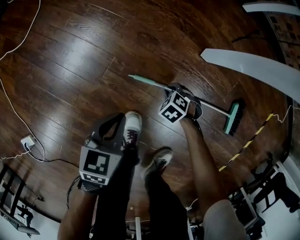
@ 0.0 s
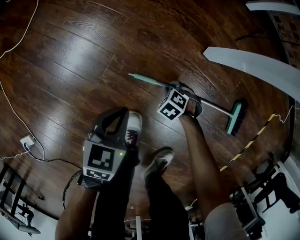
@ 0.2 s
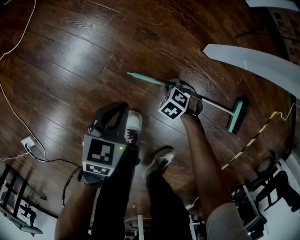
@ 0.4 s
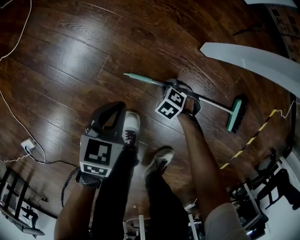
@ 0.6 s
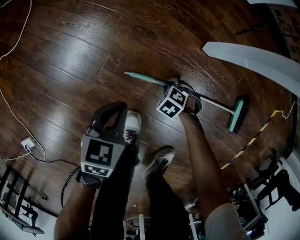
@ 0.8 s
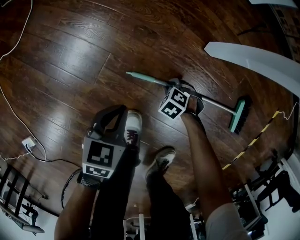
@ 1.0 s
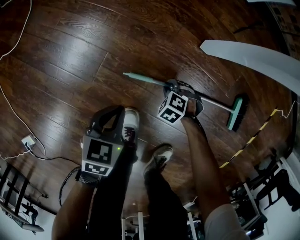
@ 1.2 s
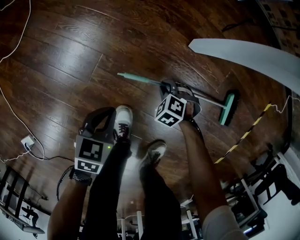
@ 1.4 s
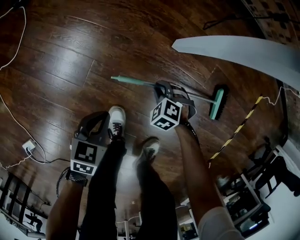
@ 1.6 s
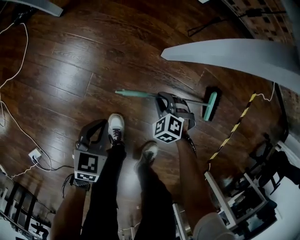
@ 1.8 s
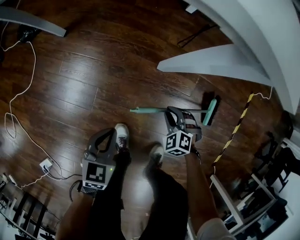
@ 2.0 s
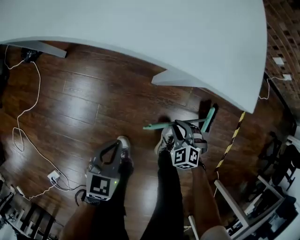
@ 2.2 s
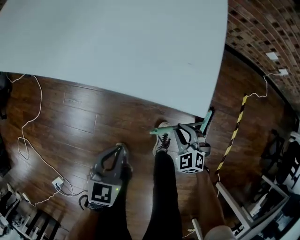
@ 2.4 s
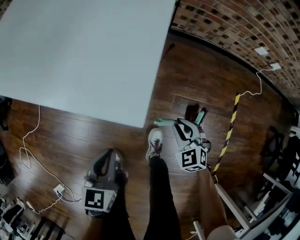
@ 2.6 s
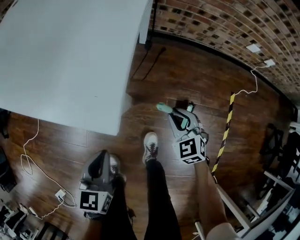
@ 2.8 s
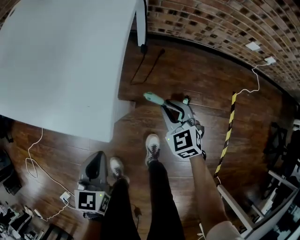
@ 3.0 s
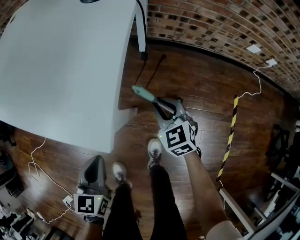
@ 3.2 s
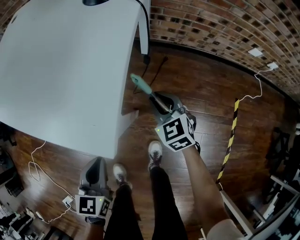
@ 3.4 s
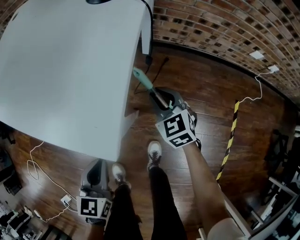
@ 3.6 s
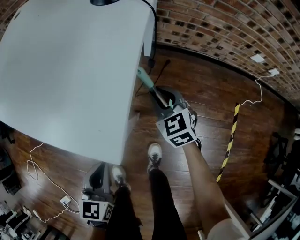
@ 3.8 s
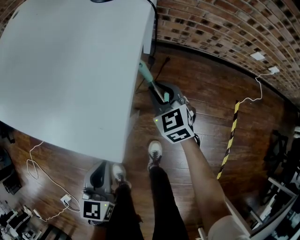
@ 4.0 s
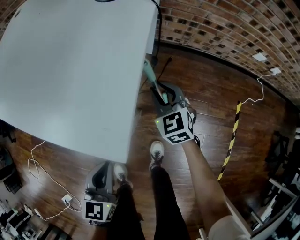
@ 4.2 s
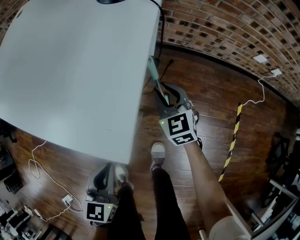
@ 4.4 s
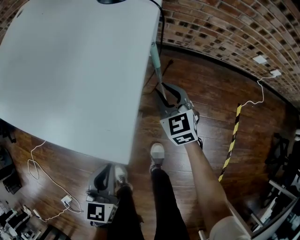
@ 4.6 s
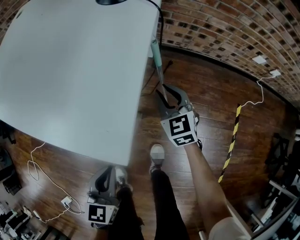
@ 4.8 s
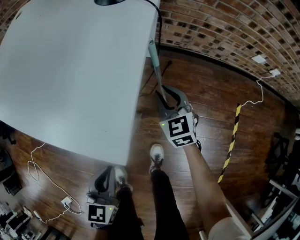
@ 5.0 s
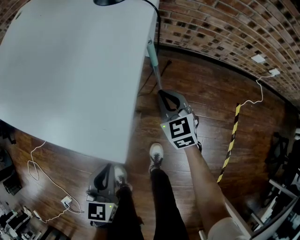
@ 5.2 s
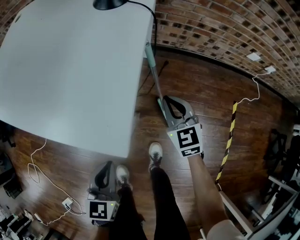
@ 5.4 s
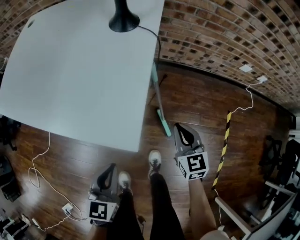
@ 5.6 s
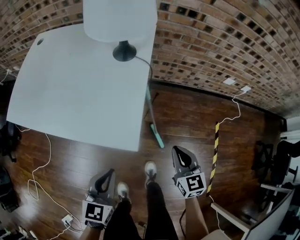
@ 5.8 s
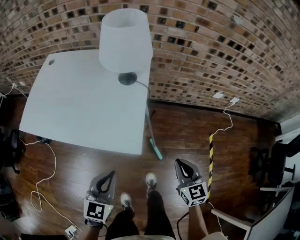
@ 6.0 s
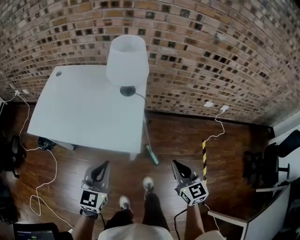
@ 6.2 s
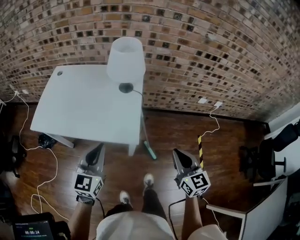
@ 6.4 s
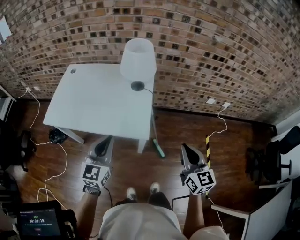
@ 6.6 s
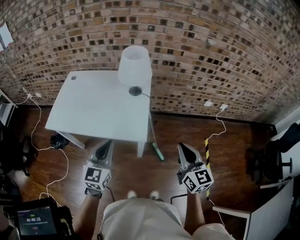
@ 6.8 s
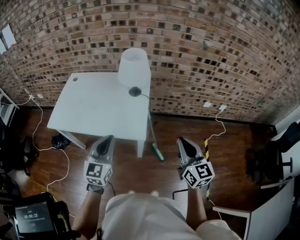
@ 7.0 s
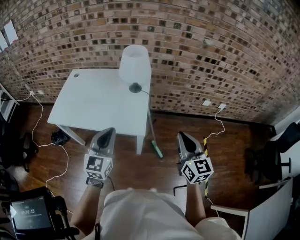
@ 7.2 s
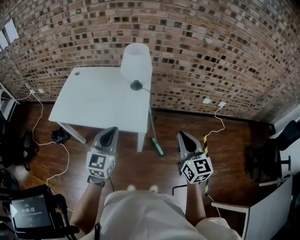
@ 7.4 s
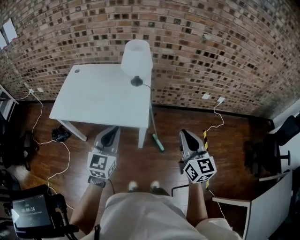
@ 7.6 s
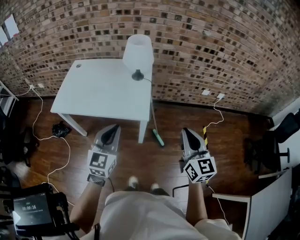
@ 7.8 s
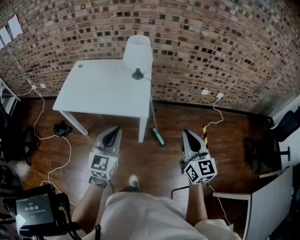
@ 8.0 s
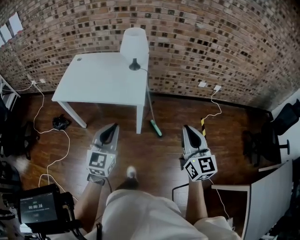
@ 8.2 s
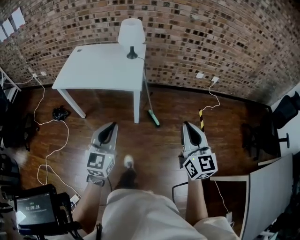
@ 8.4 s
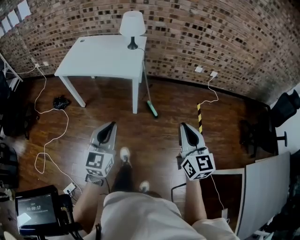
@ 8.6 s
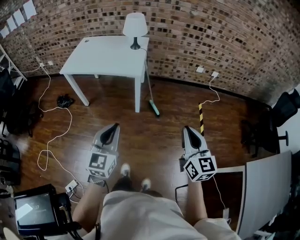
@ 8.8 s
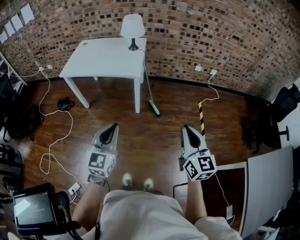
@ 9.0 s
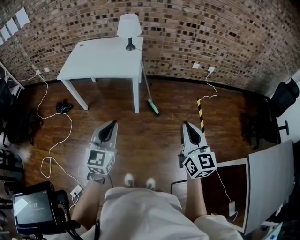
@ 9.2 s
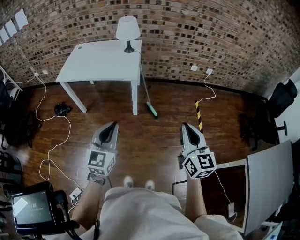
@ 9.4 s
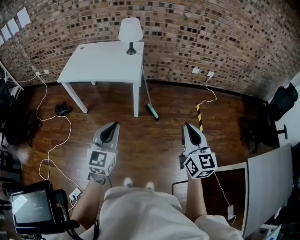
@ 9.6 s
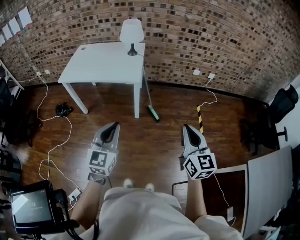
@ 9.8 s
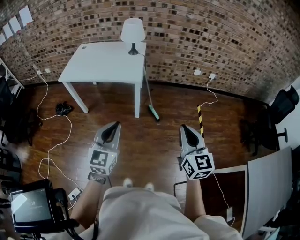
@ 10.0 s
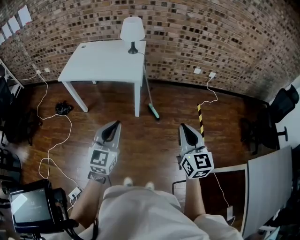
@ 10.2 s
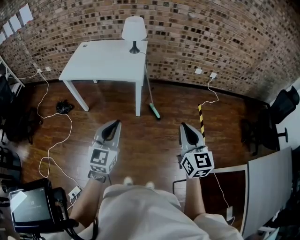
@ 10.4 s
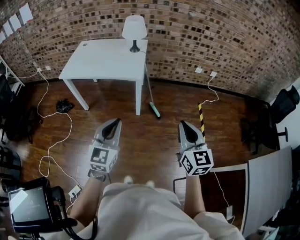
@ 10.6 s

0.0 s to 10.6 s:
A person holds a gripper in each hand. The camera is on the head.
0.0 to 1.6 s: The right gripper moves upward, roughly 10 cm.
1.6 to 3.0 s: The grippers both shift upward by roughly 35 cm. The left gripper changes its angle by approximately 20 degrees; the right gripper points its fingers about 40 degrees further upward.
3.0 to 4.6 s: The right gripper moves forward, about 10 cm.
4.6 to 6.0 s: The right gripper is displaced upward and backward by some 35 cm, swivels about 20 degrees, and closes. Meanwhile the left gripper shifts approximately 25 cm upward.
6.0 to 7.6 s: Both grippers travel together upward, roughly 25 cm. The right gripper swivels some 20 degrees.
7.6 to 9.0 s: The grippers both shift backward by approximately 40 cm.
9.0 to 10.6 s: The right gripper ends up roughly 5 cm from where it was.

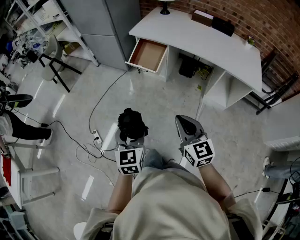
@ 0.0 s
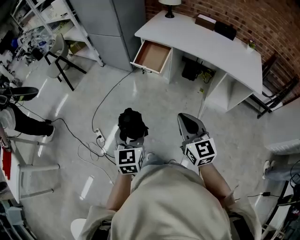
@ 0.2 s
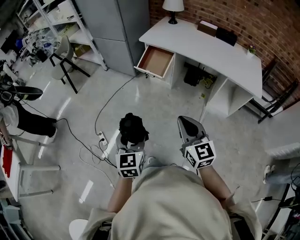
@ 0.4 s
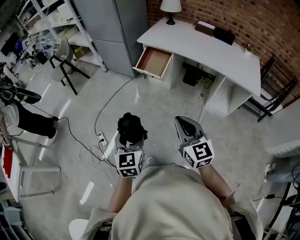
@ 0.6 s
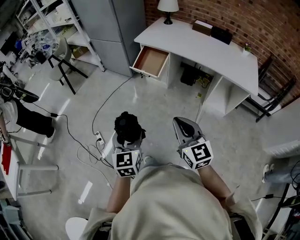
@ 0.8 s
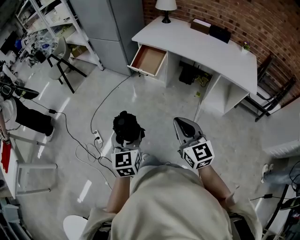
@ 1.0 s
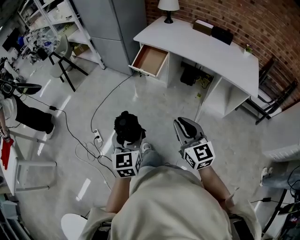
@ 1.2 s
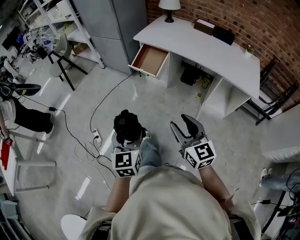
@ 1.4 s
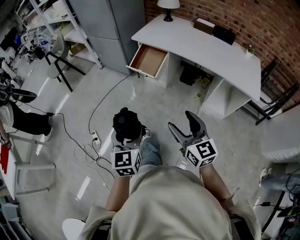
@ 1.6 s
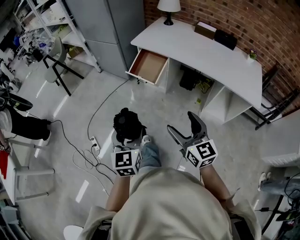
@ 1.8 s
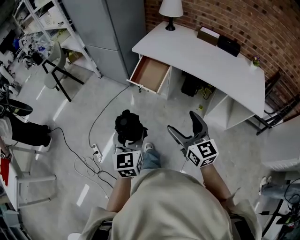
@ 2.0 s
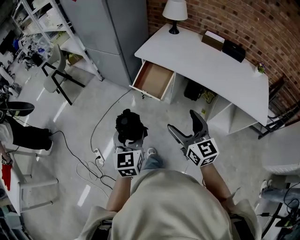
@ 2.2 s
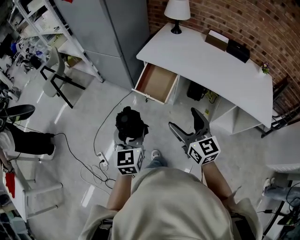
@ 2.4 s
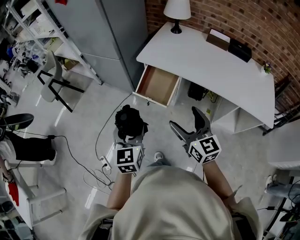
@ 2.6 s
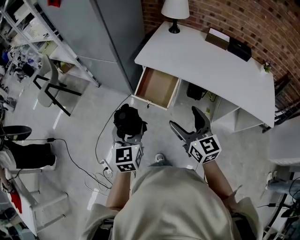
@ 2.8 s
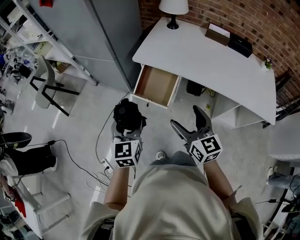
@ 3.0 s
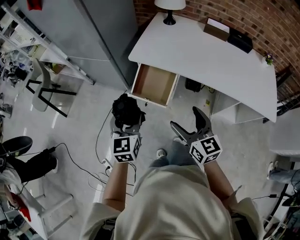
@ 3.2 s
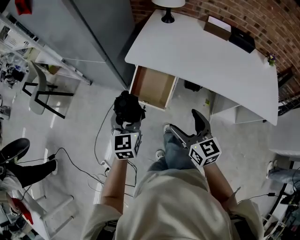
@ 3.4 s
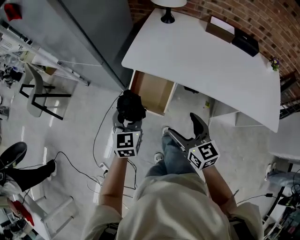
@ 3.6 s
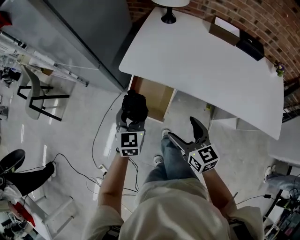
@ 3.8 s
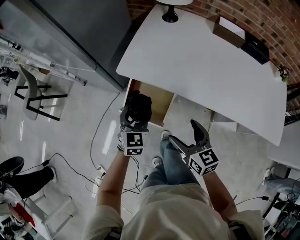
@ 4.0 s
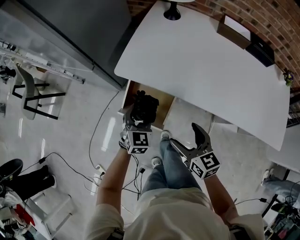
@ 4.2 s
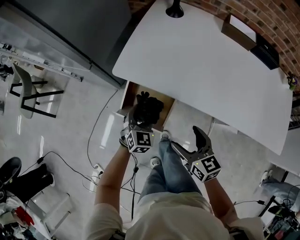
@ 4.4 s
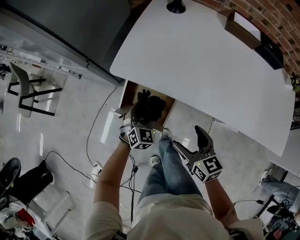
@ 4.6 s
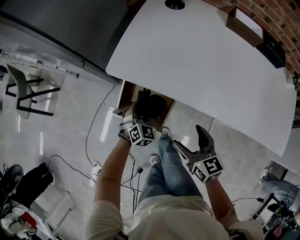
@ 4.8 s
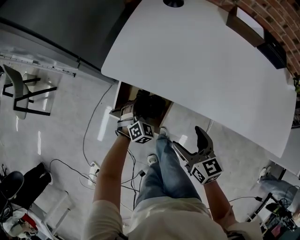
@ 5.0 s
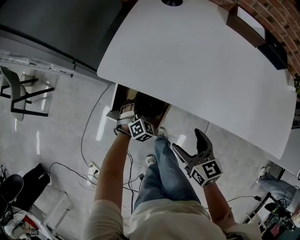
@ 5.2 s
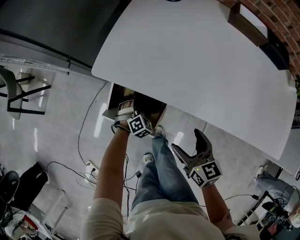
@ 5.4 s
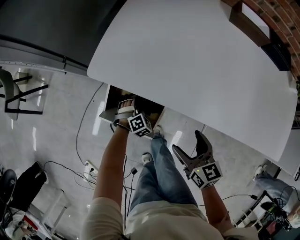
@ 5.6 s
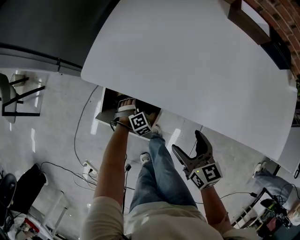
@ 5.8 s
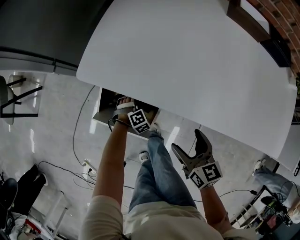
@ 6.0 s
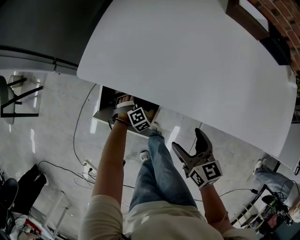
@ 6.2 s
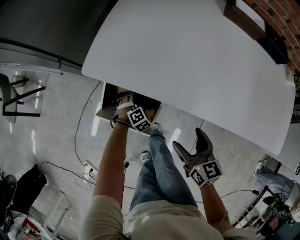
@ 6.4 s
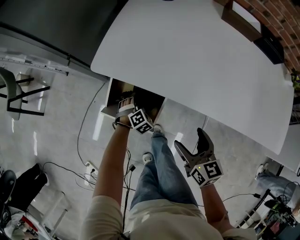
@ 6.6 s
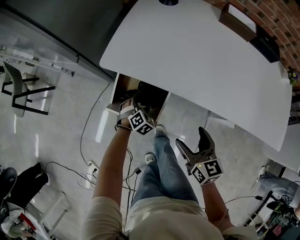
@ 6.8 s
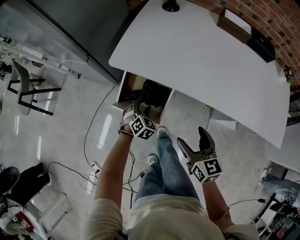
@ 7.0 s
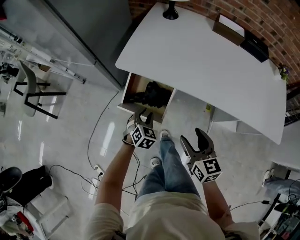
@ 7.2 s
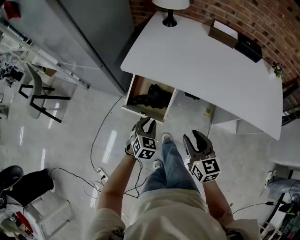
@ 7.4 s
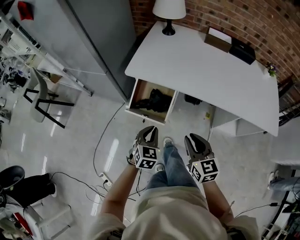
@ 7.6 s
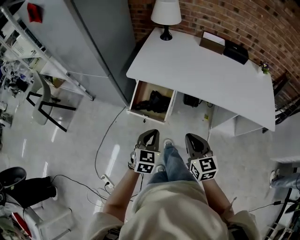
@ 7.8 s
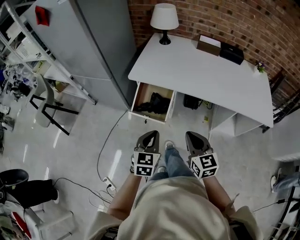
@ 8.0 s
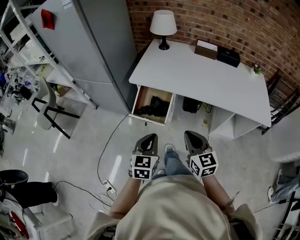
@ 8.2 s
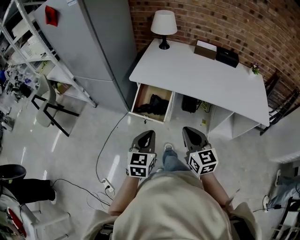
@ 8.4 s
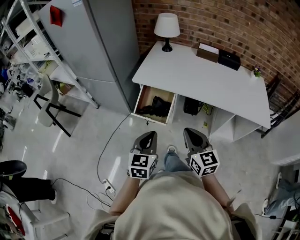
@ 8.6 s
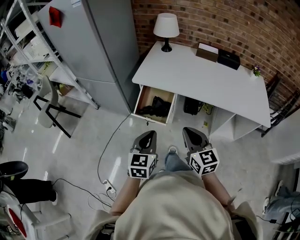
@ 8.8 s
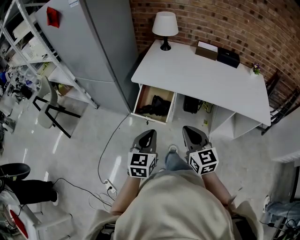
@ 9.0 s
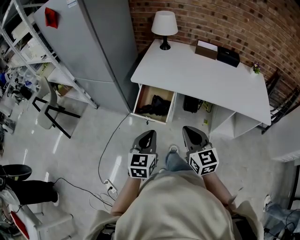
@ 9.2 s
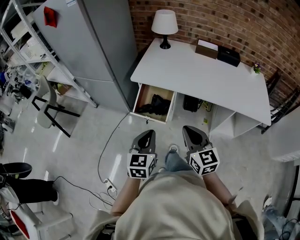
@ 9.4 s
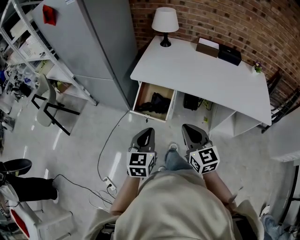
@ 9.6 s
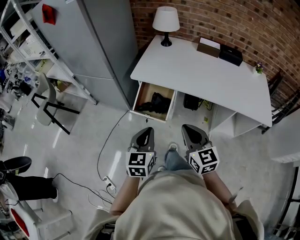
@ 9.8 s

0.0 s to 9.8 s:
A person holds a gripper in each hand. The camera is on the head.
0.0 to 1.4 s: The grippers both shift backward by some 5 cm. The right gripper opens.
1.4 to 2.8 s: The grippers both shift forward by roughly 40 cm. The right gripper opens.
2.8 to 4.2 s: The right gripper goes approximately 25 cm forward and downward, and swivels roughly 20 degrees; the left gripper moves forward, downward and to the right, approximately 35 cm, and turns by some 30 degrees.
4.2 to 5.6 s: The left gripper is displaced downward by roughly 25 cm, and tilts its fingers some 30 degrees downward, while the right gripper shifts roughly 10 cm downward and to the right.
5.6 to 7.0 s: The left gripper moves upward and backward, approximately 15 cm, and turns by some 20 degrees, while the right gripper goes about 10 cm backward and upward.
7.0 to 8.4 s: The left gripper moves upward and backward, approximately 40 cm, tips its fingers upward by about 30 degrees, and closes. The right gripper is displaced backward and upward by approximately 25 cm, and closes.
8.4 to 9.8 s: The grippers make only small movements.

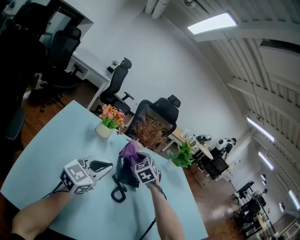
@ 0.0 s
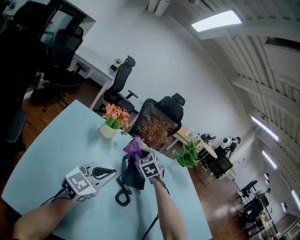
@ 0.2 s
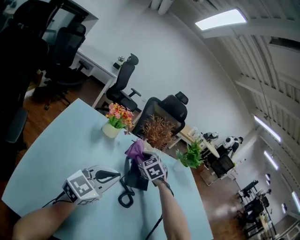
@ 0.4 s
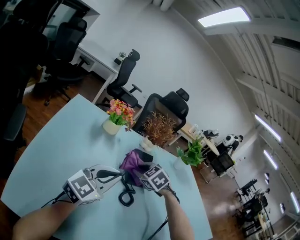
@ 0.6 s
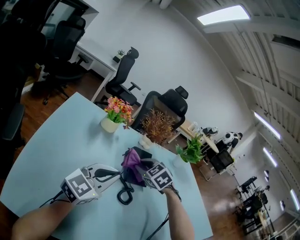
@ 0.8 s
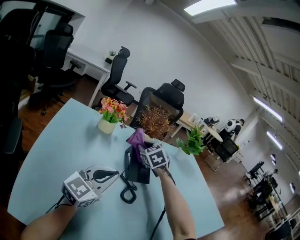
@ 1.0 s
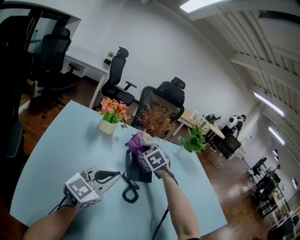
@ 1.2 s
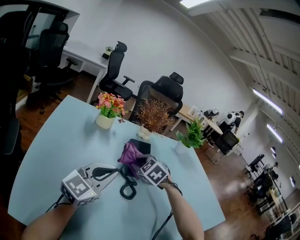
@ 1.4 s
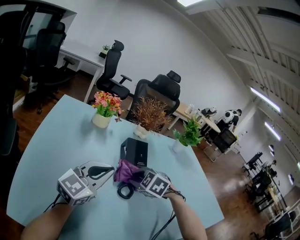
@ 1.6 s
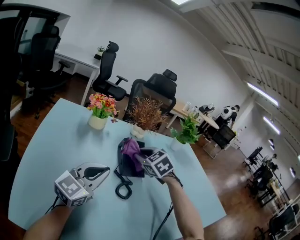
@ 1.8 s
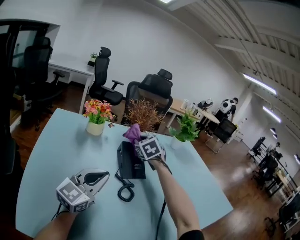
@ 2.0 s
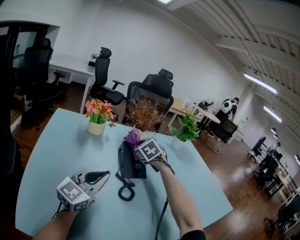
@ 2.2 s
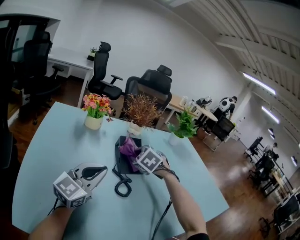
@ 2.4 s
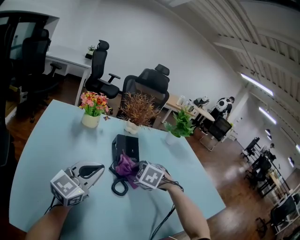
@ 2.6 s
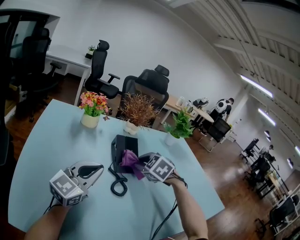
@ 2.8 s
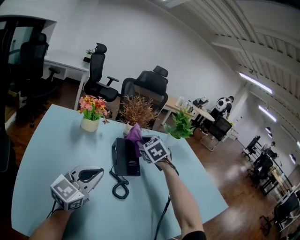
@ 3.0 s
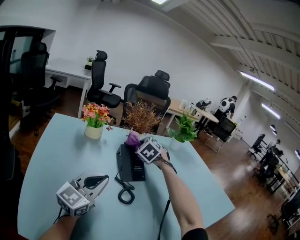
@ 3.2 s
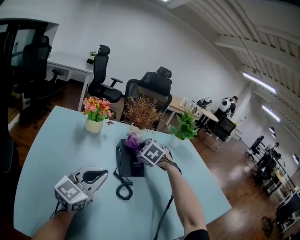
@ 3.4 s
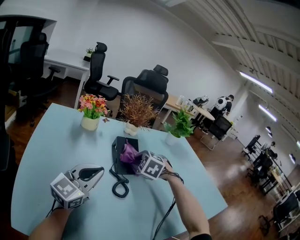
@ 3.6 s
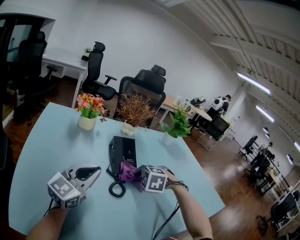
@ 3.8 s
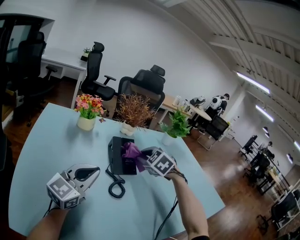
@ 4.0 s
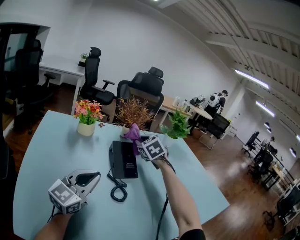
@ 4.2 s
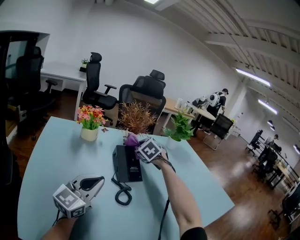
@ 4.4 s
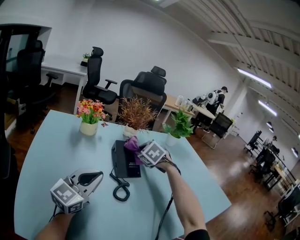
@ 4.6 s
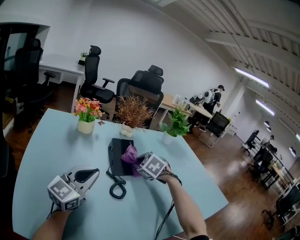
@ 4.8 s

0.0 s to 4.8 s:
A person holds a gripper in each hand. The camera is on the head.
0.0 to 1.6 s: The right gripper moves forward and backward over approximately 15 cm, changing direction 3 times, and rotates some 30 degrees.
1.6 to 3.2 s: The right gripper moves forward and backward over roughly 20 cm, changing direction 2 times, and swivels approximately 30 degrees.
3.2 to 4.8 s: The right gripper moves forward and backward over approximately 20 cm, changing direction 2 times.
